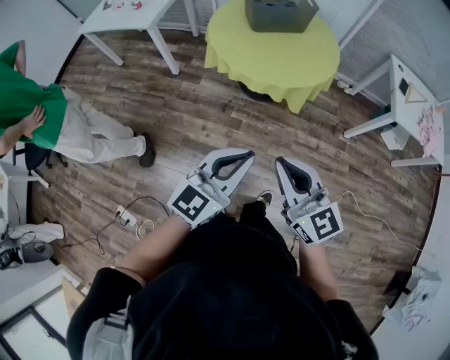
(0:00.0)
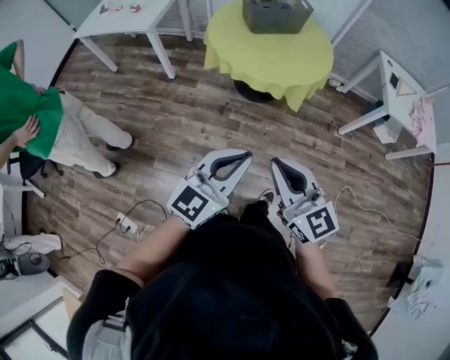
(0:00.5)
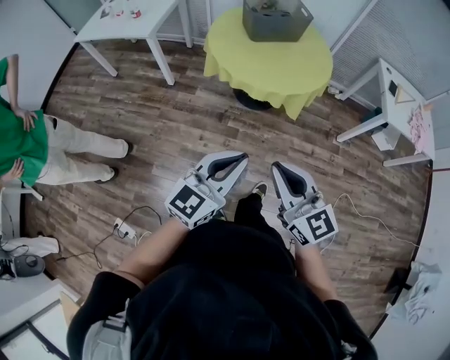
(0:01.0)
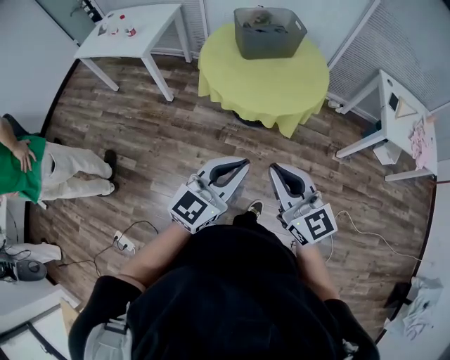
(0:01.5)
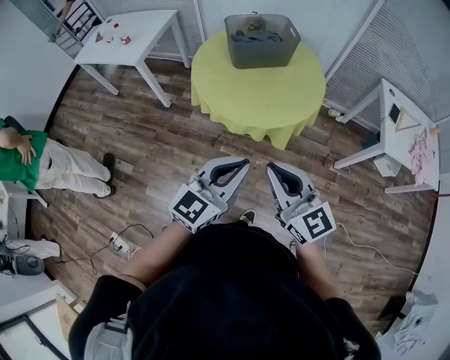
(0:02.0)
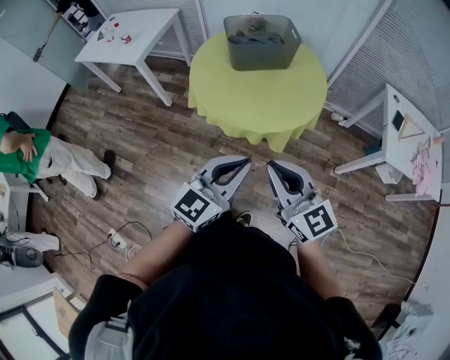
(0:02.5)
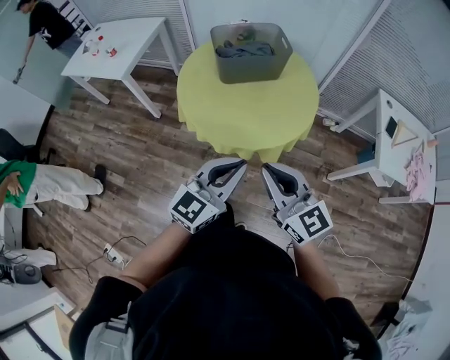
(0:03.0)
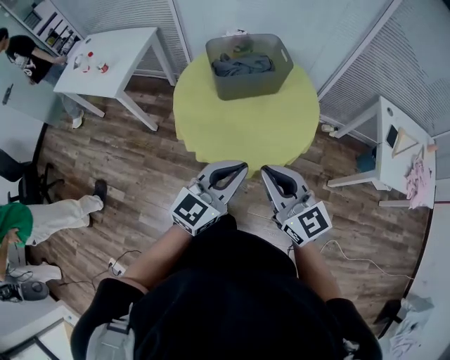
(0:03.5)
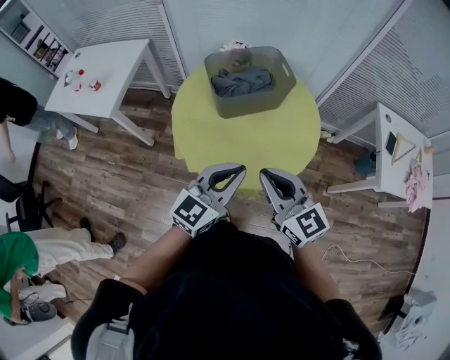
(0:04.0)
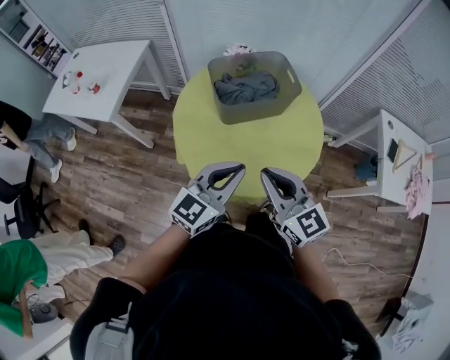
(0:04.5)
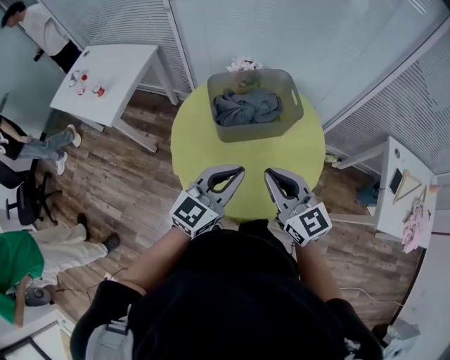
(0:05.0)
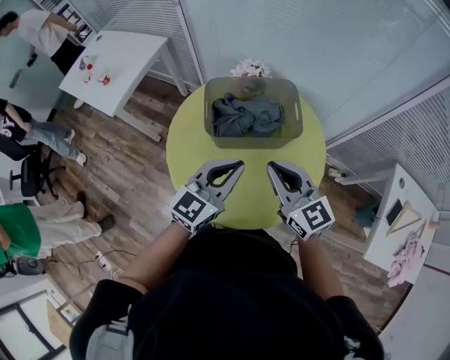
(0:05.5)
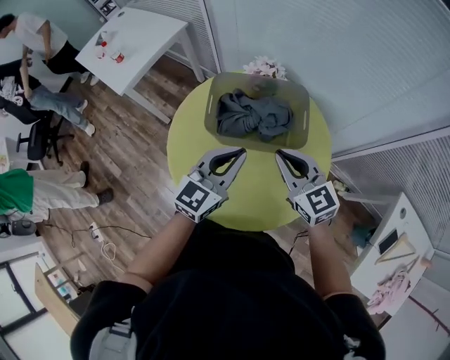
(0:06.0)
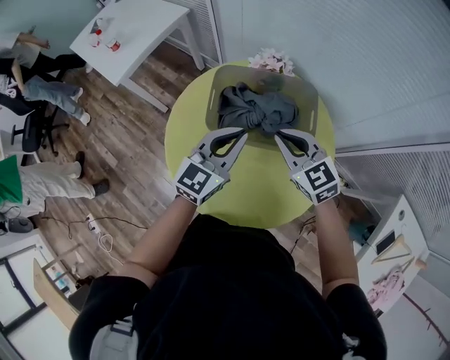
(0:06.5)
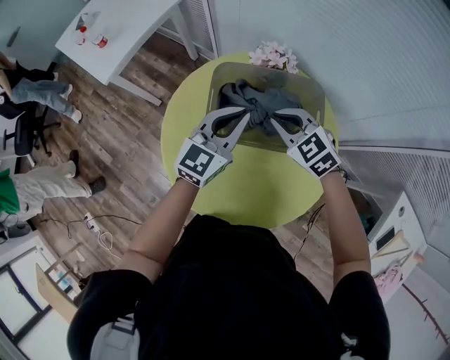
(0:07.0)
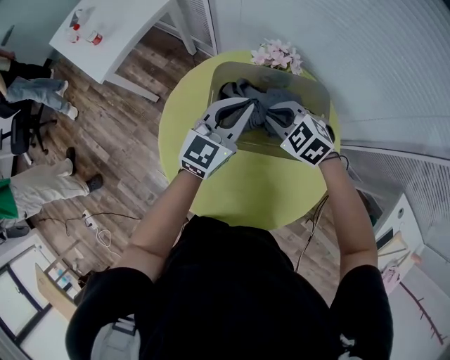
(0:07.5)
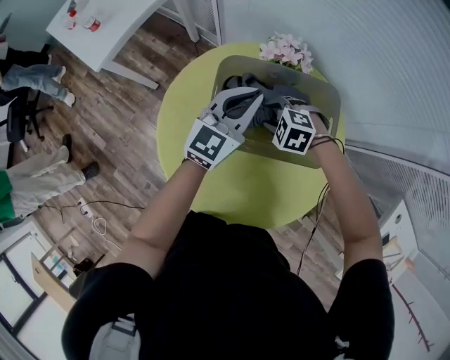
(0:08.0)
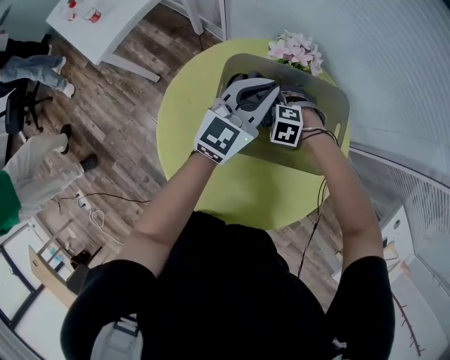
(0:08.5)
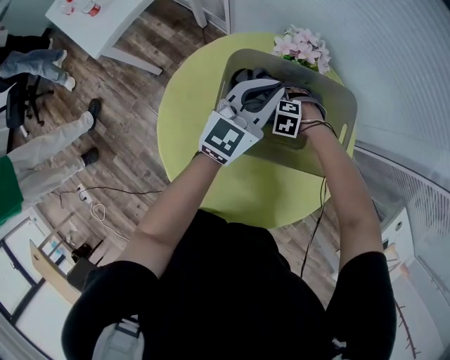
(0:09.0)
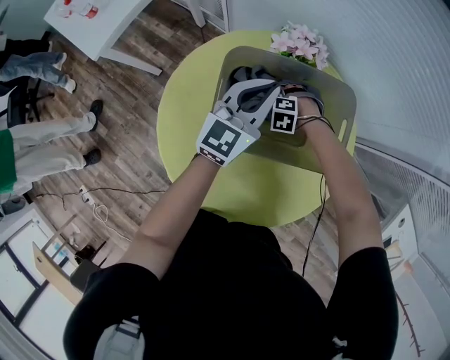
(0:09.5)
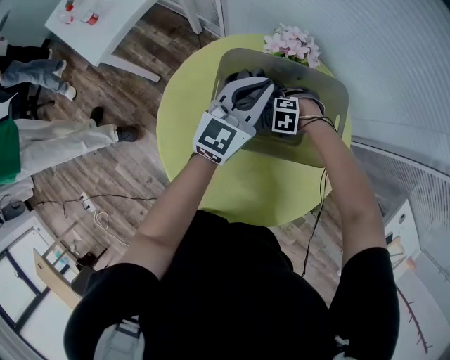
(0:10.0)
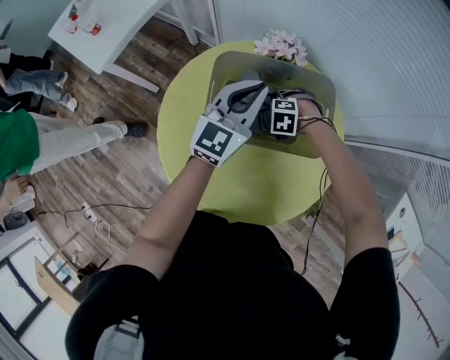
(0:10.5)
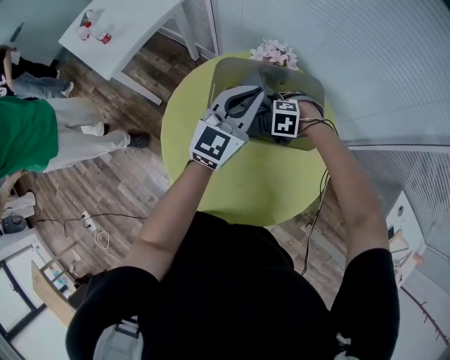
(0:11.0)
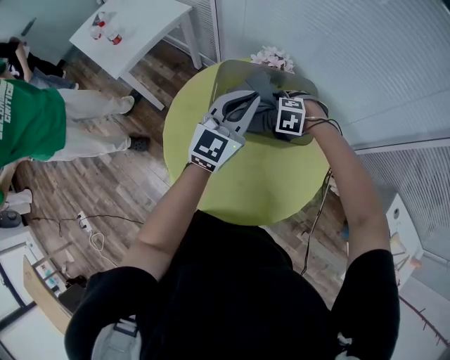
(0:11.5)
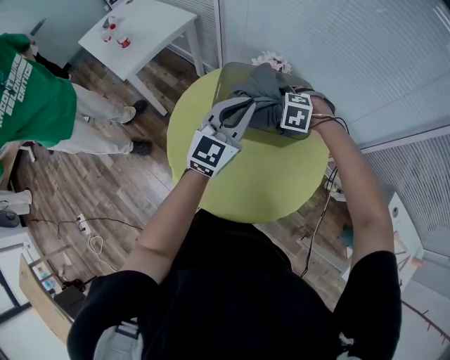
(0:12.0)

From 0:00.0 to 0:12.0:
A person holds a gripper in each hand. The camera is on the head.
From 0:00.0 to 0:02.0: The grippers both shift forward and to the right by about 15 cm.
From 0:02.0 to 0:04.0: Both grippers travel together forward, some 30 cm.
From 0:04.0 to 0:06.0: The right gripper shifts by approximately 35 cm, and changes its angle by some 20 degrees. Meanwhile the left gripper shifts by about 30 cm, and turns by roughly 30 degrees.
From 0:06.0 to 0:08.0: The left gripper heads forward and downward, covering roughly 20 cm. The right gripper travels downward and forward by approximately 30 cm, and tilts its fingers some 50 degrees downward.
From 0:08.0 to 0:10.0: The right gripper heads downward, covering about 10 cm, and opens up.
From 0:10.0 to 0:12.0: The left gripper shifts by approximately 20 cm. Meanwhile the right gripper is displaced upward by roughly 25 cm.

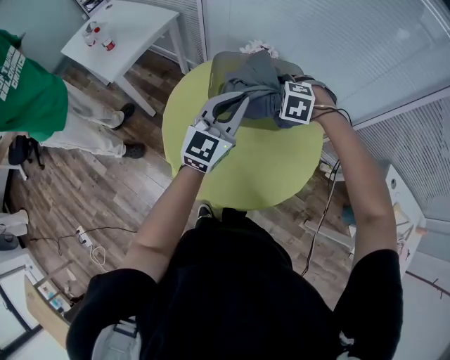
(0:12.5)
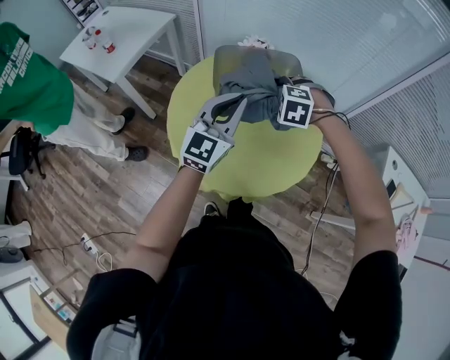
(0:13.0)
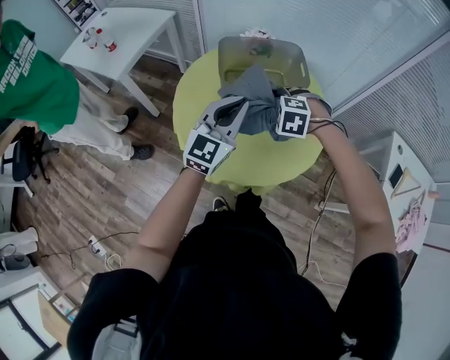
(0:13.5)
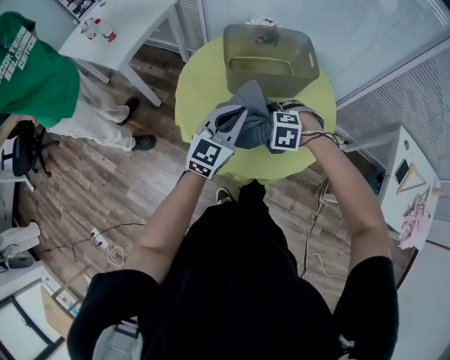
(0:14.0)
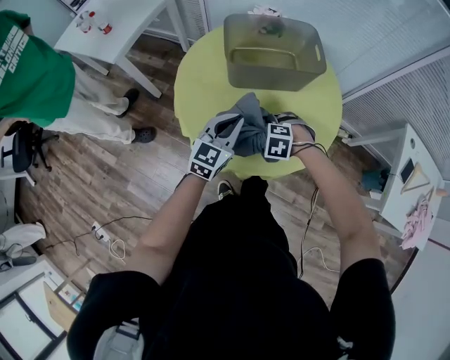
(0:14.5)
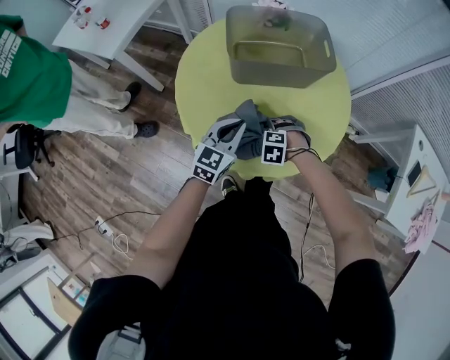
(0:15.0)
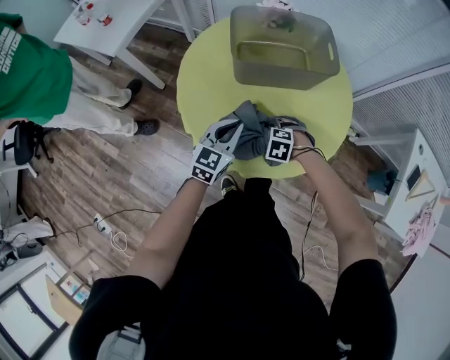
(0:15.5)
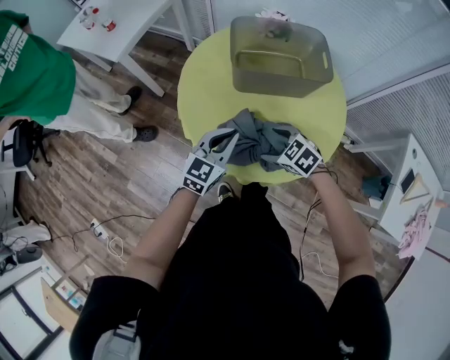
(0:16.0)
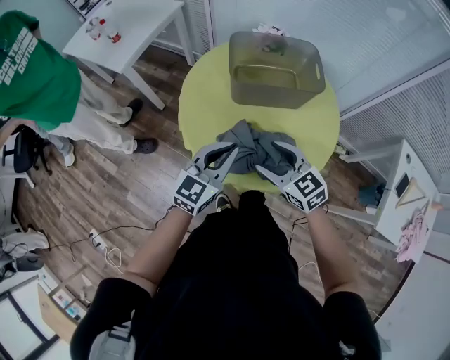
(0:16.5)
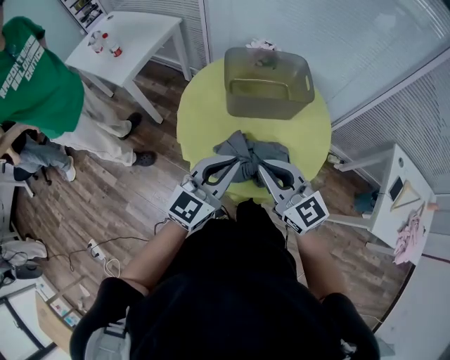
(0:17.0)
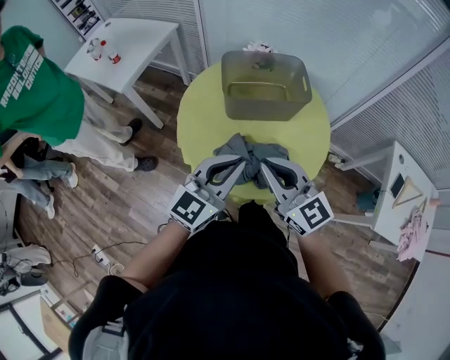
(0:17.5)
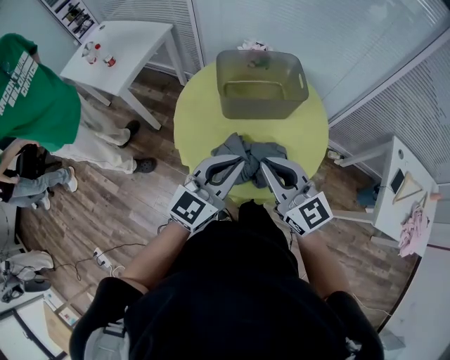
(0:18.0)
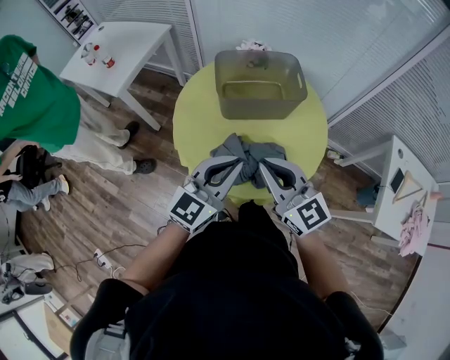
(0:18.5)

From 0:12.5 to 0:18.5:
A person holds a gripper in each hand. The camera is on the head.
From 0:12.5 to 0:14.5: The left gripper heads downward, covering about 20 cm. Meanwhile the right gripper changes place by about 30 cm.
From 0:14.5 to 0:16.5: The right gripper shifts roughly 20 cm upward, and tips its fingers upward by some 50 degrees. Meanwhile the left gripper moves upward, some 10 cm.
From 0:16.5 to 0:18.5: The left gripper is displaced upward by some 10 cm, while the right gripper travels upward by approximately 15 cm, swivels about 30 degrees, and closes its fingers.

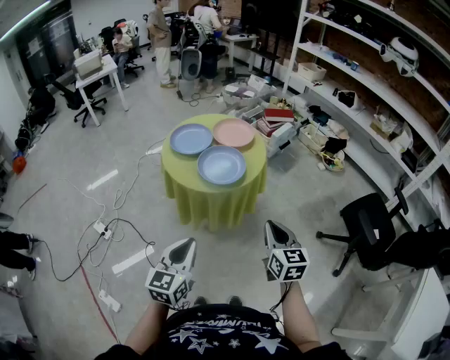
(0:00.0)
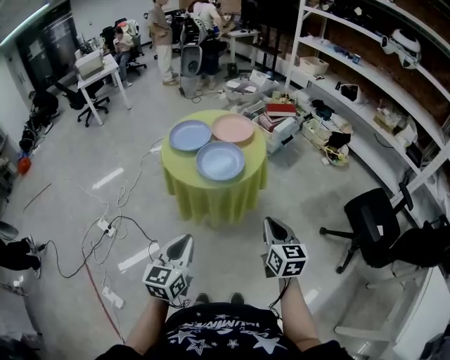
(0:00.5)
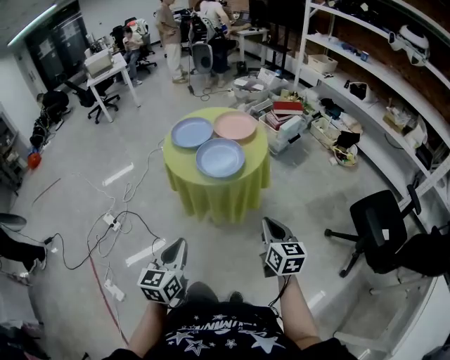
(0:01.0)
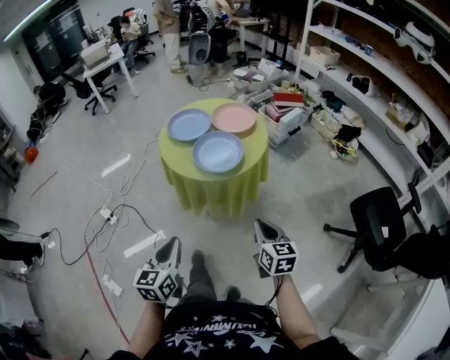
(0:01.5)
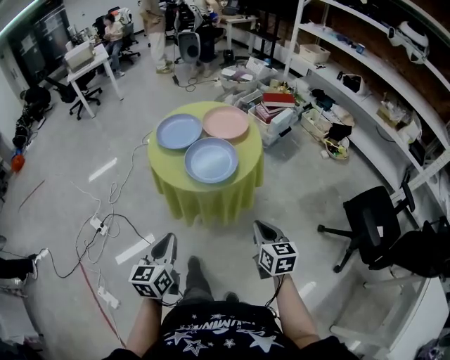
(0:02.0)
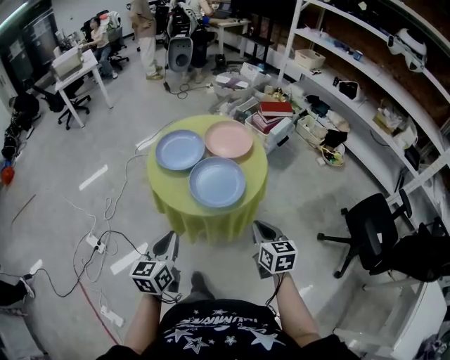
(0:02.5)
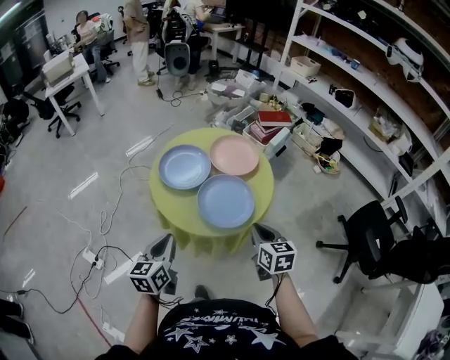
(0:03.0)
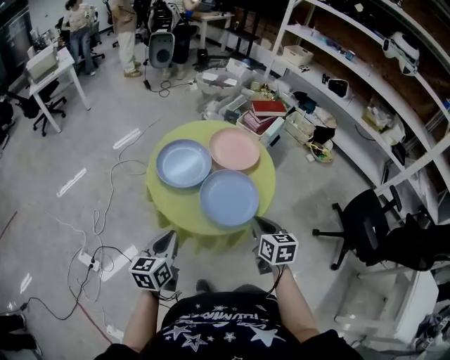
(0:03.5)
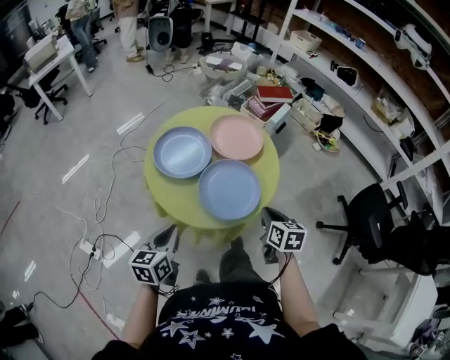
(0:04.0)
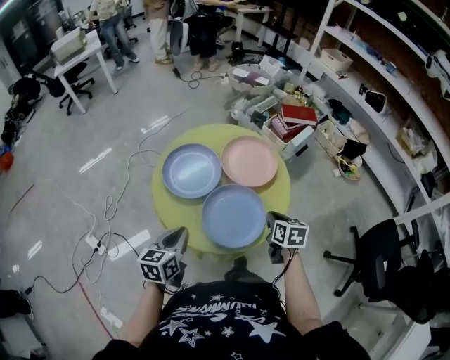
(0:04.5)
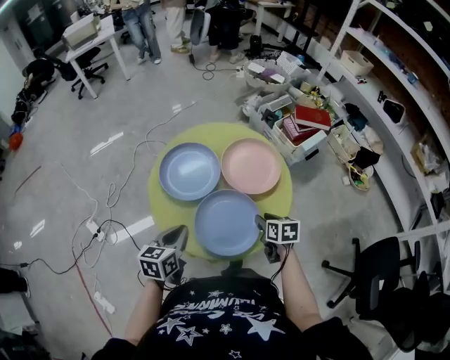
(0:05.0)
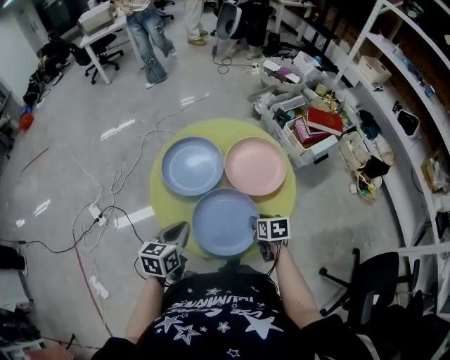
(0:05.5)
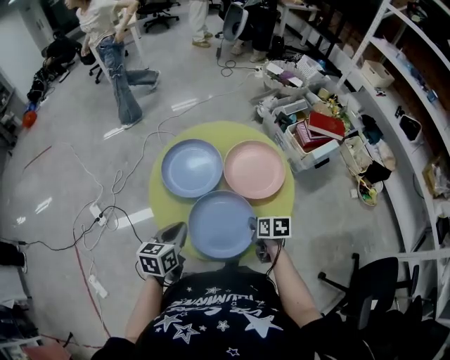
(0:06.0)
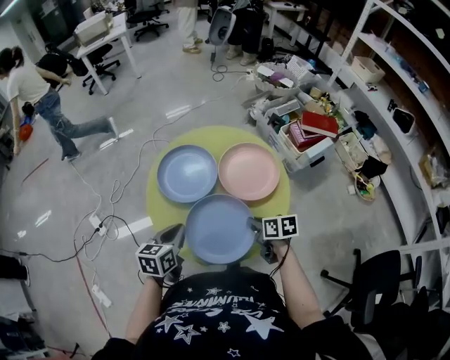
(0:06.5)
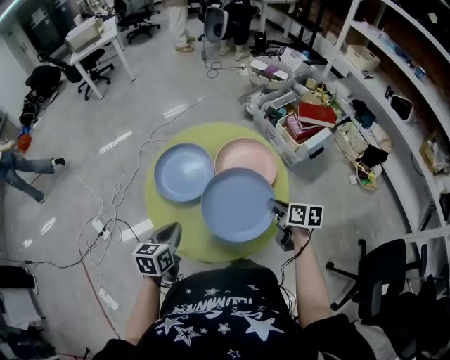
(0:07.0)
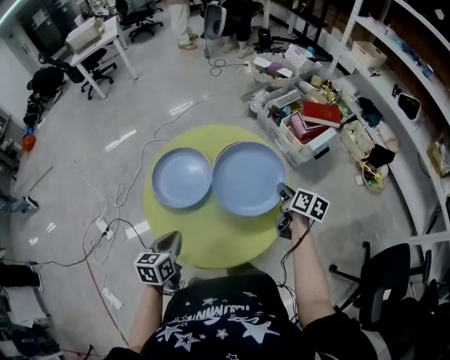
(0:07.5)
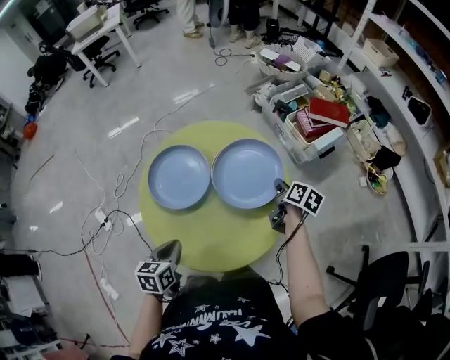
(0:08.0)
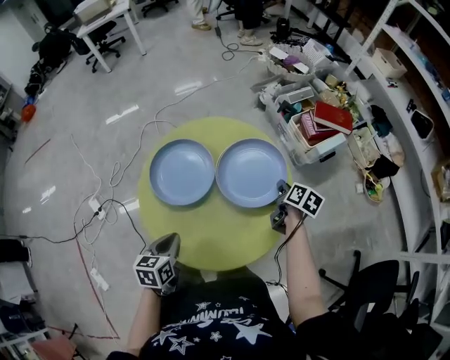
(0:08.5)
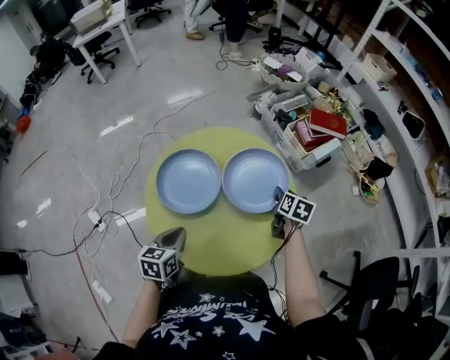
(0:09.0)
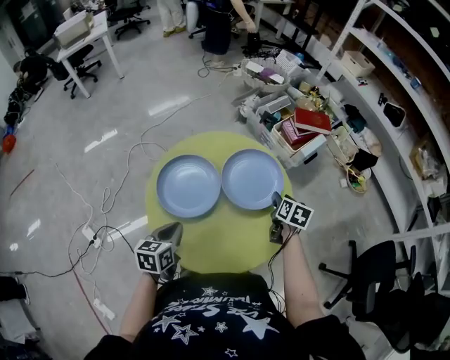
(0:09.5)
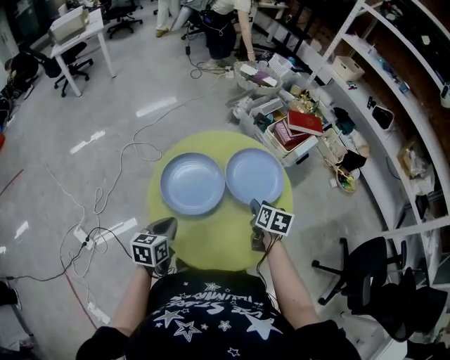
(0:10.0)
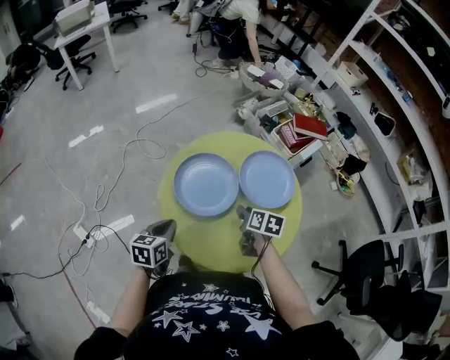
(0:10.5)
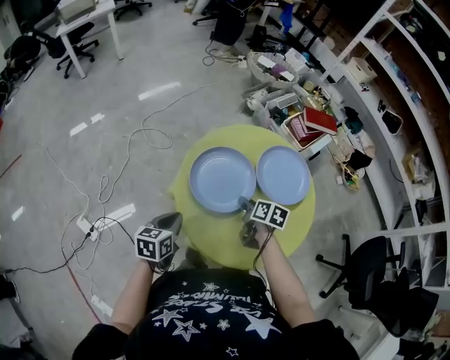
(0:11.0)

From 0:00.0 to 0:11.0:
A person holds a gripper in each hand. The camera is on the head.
From 0:00.0 to 0:02.0: The left gripper shifts about 10 cm forward and downward; the right gripper goes about 10 cm downward and forward.
From 0:02.0 to 0:03.5: The grippers both shift forward and to the left by about 25 cm.
From 0:03.5 to 0:05.5: The right gripper changes place by about 25 cm, turns by approximately 40 degrees, and opens its fingers. The left gripper shifts by approximately 15 cm, and rotates some 20 degrees.
From 0:05.5 to 0:07.5: The right gripper is displaced to the right, forward and upward by about 20 cm, swivels roughly 40 degrees, and closes.
From 0:07.5 to 0:09.0: The right gripper shifts by about 5 cm, swivels about 20 degrees, and opens.
From 0:09.0 to 0:11.0: The right gripper is displaced to the left and backward by about 25 cm. Meanwhile the left gripper goes roughly 15 cm to the left.
